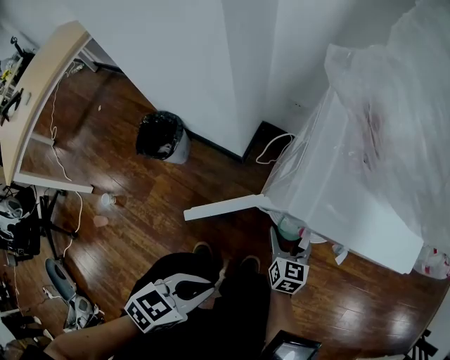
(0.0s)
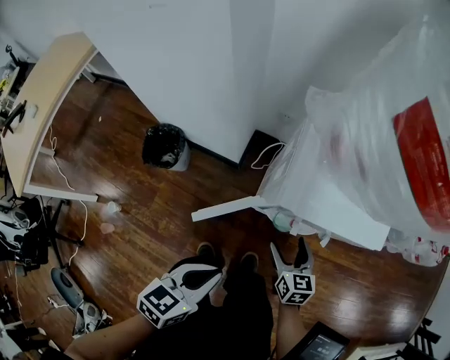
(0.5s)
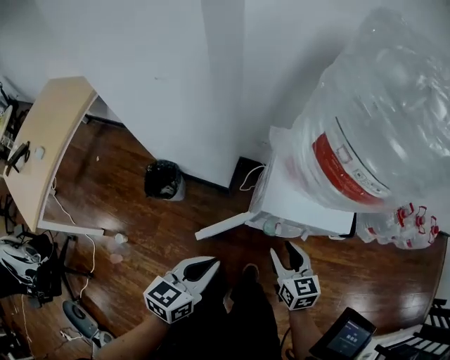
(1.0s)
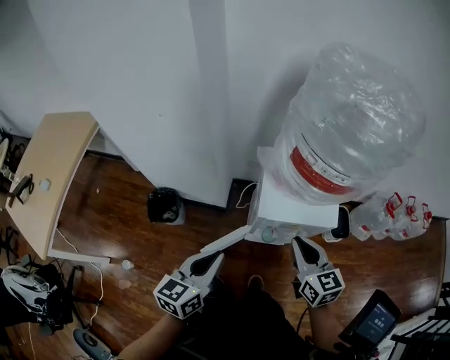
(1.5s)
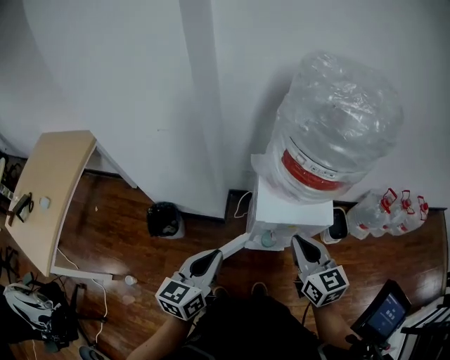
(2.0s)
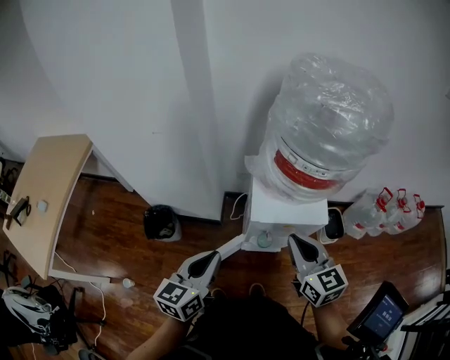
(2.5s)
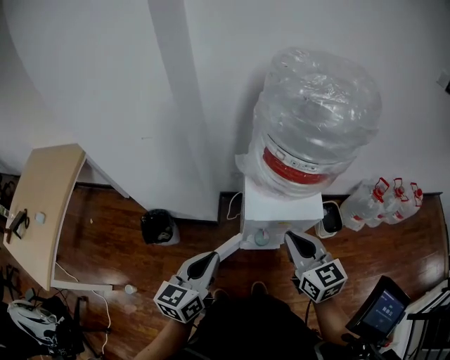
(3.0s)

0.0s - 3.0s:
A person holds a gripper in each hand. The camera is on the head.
0.0s - 1.5s: The two grippers go approximately 40 cm upward. The right gripper closes its fingers. The left gripper rotates about 30 degrees.
1.5s - 3.0s: The right gripper shifts roughly 5 cm upward.

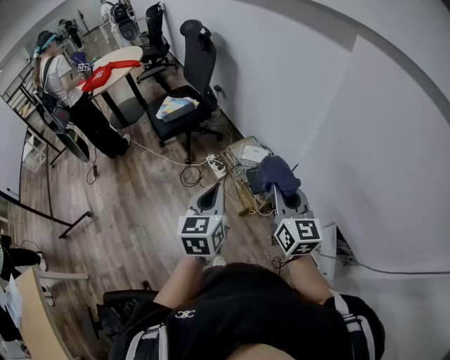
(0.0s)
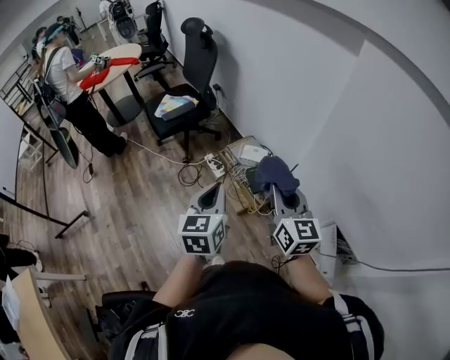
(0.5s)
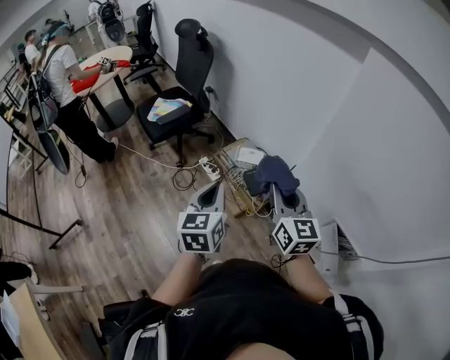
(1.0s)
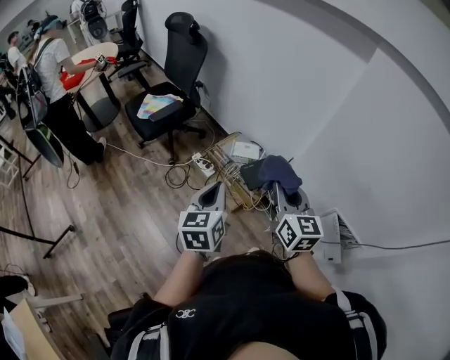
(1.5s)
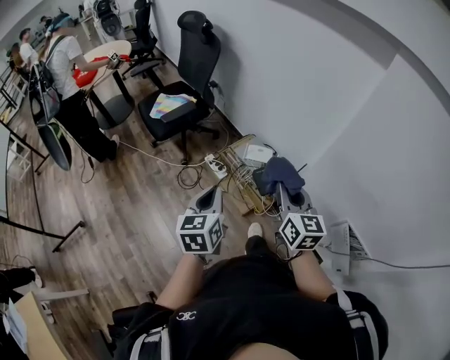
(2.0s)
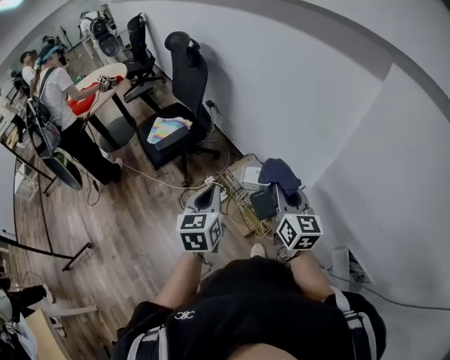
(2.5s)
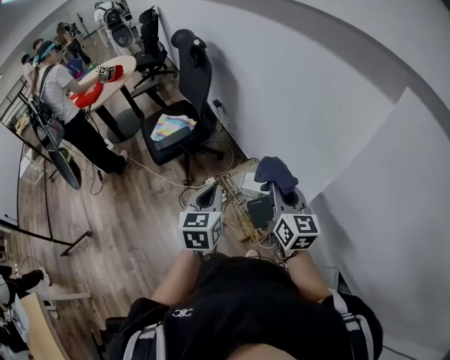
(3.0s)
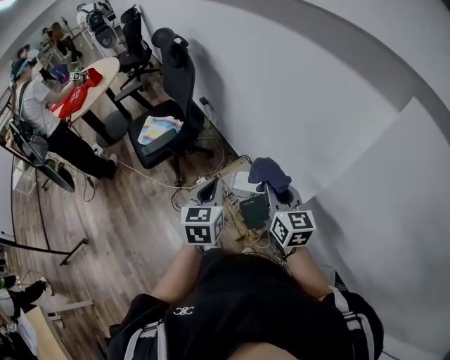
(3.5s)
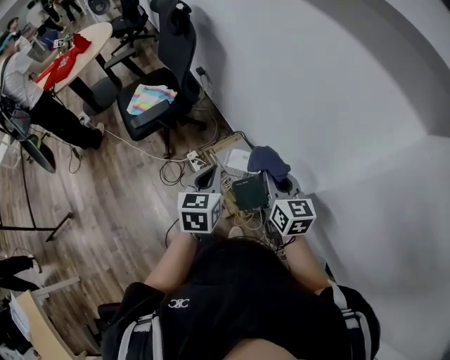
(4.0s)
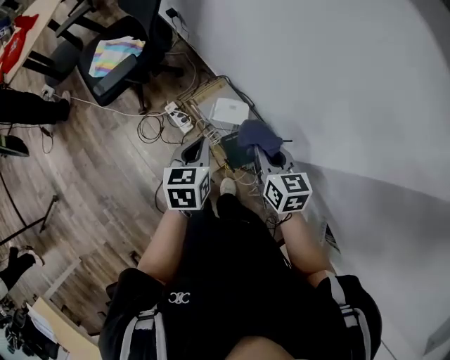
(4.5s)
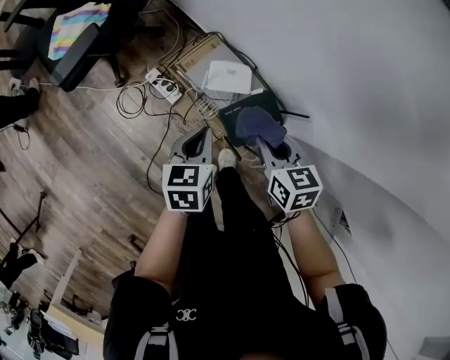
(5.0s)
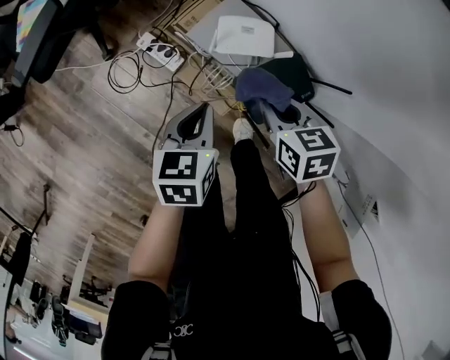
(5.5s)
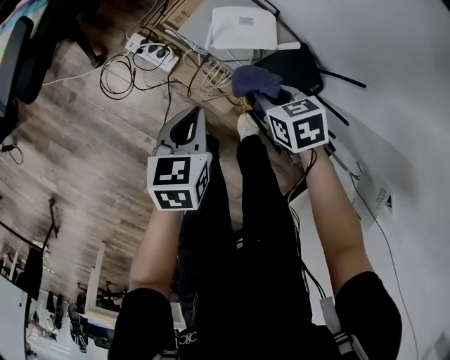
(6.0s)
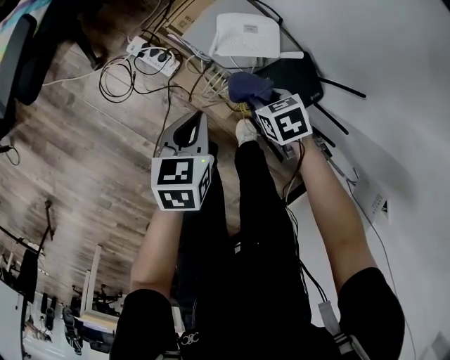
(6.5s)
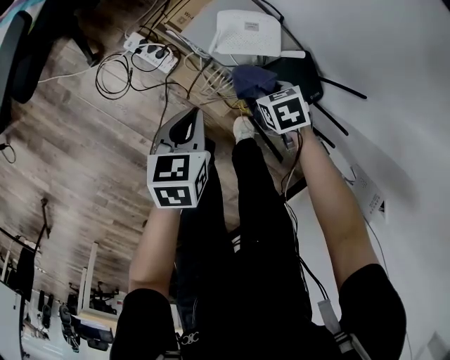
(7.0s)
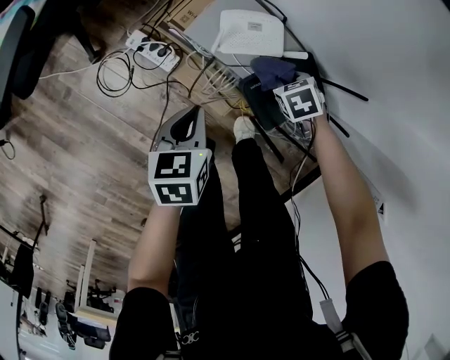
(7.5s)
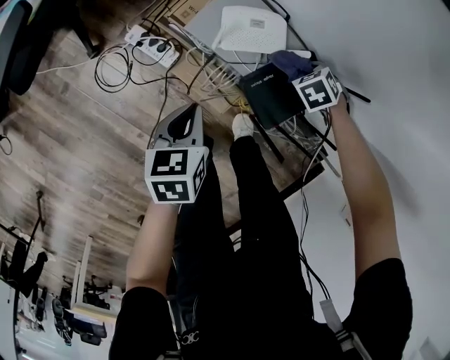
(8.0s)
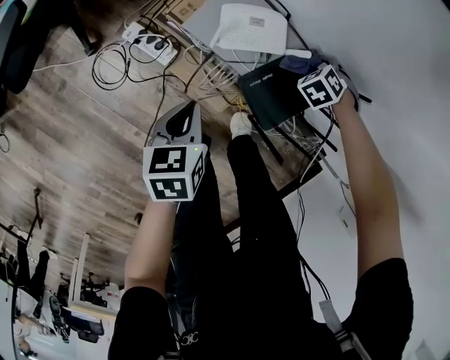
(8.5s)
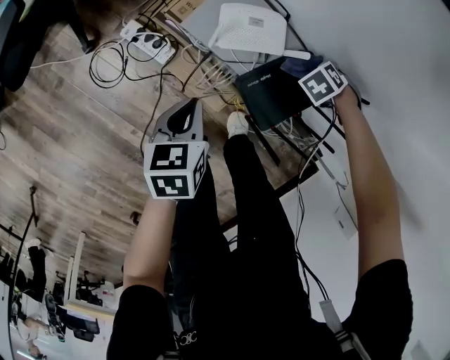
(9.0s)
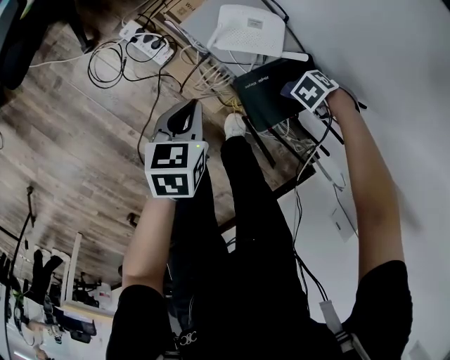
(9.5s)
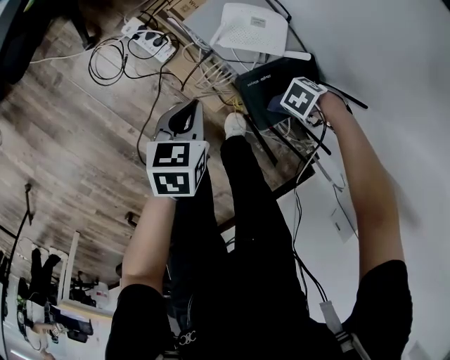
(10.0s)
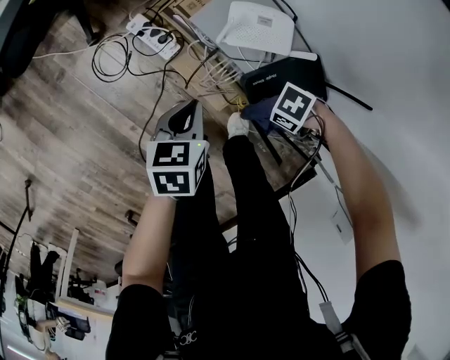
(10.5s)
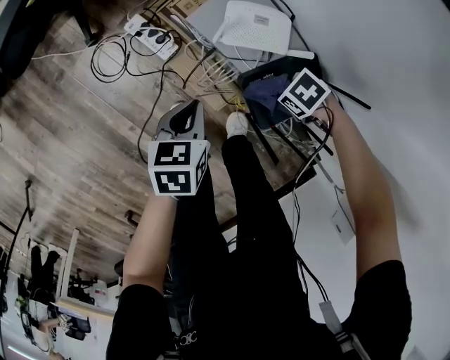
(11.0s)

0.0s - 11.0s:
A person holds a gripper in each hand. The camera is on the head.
0.0s - 2.0s: The right gripper travels to the left and forward by about 10 cm. The left gripper travels to the left, forward and downward by roughly 15 cm.
2.0s - 3.5s: The two grippers go approximately 25 cm forward and to the right.
3.5s - 5.5s: The two grippers go approximately 40 cm downward. The left gripper turns by approximately 30 degrees; the right gripper tips its fingers downward by some 40 degrees.
5.5s - 7.5s: The right gripper shifts roughly 20 cm downward, and turns by some 30 degrees; the left gripper heads downward, covering some 10 cm.
7.5s - 9.0s: The right gripper changes place by approximately 10 cm, and turns by approximately 30 degrees.
9.0s - 11.0s: The right gripper shifts by some 15 cm, and turns by approximately 30 degrees.

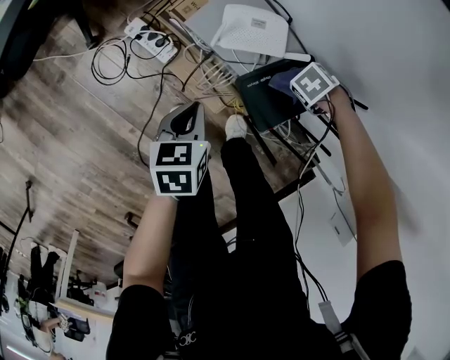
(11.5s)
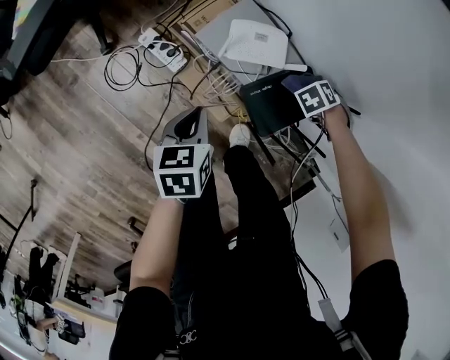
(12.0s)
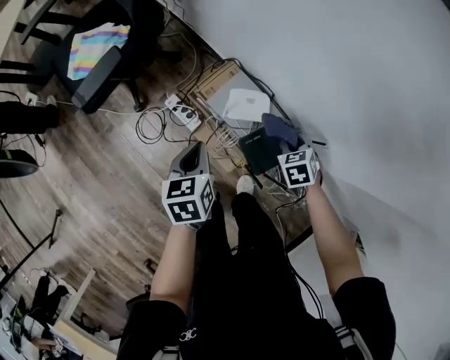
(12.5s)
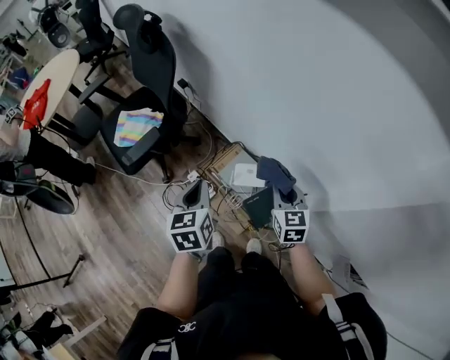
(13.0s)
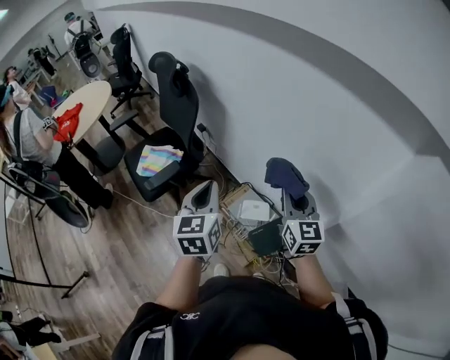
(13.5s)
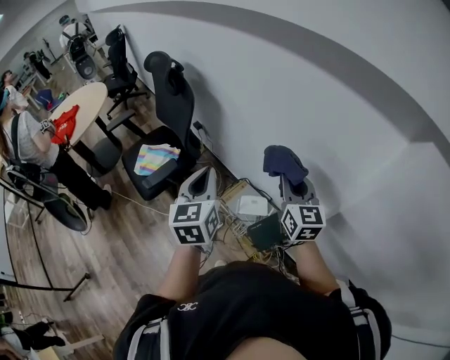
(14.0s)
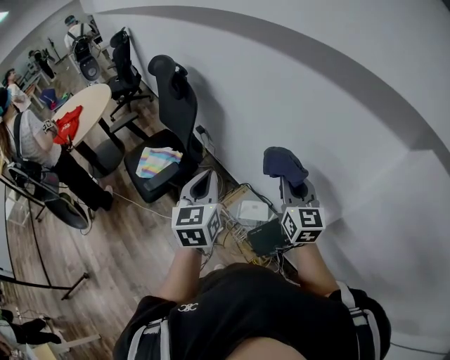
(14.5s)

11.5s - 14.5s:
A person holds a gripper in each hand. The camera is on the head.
11.5s - 13.0s: Both grippers move upward, some 50 cm. The right gripper angles its fingers upward, by some 40 degrees, while the left gripper changes its angle by some 30 degrees.
13.0s - 14.5s: Both grippers travel together upward, roughly 20 cm. The left gripper rotates about 20 degrees. The right gripper changes its angle by approximately 30 degrees.

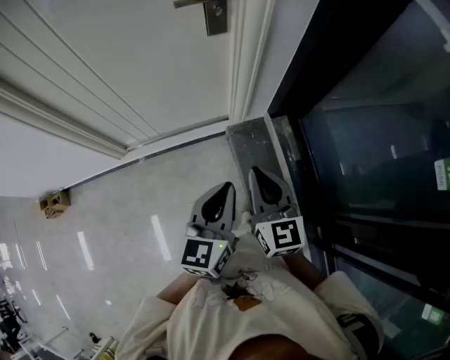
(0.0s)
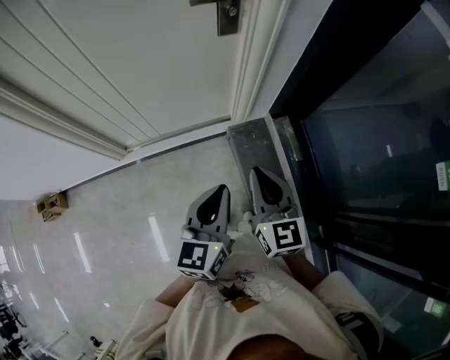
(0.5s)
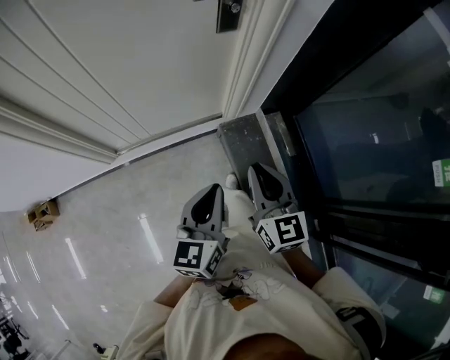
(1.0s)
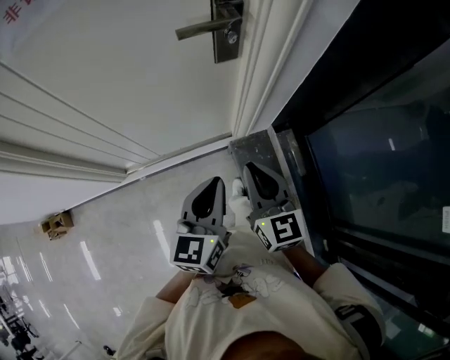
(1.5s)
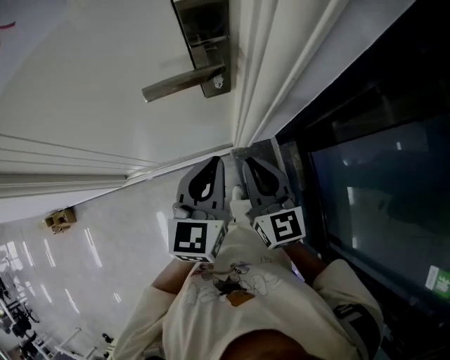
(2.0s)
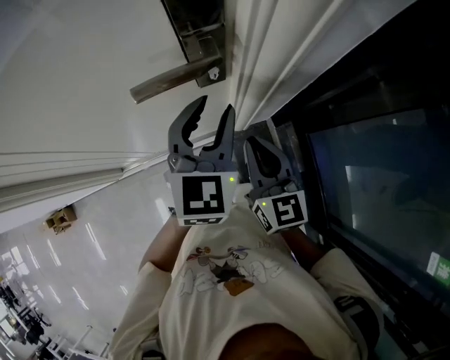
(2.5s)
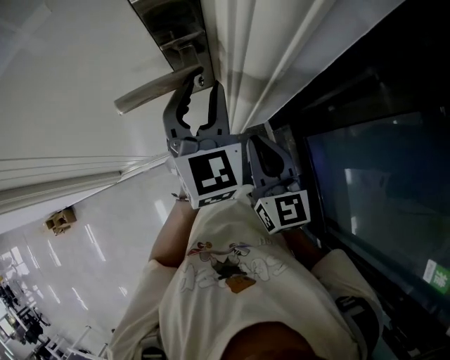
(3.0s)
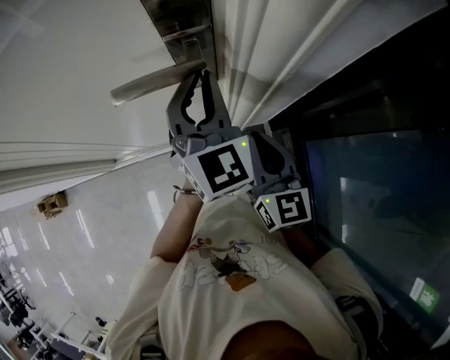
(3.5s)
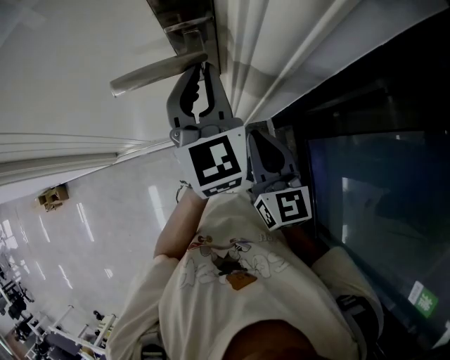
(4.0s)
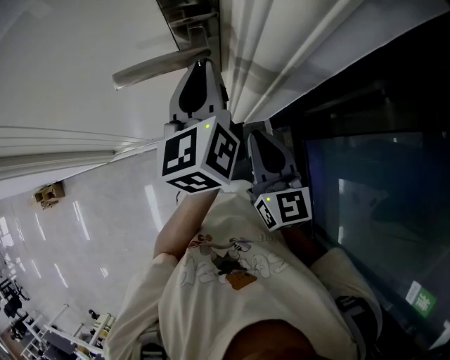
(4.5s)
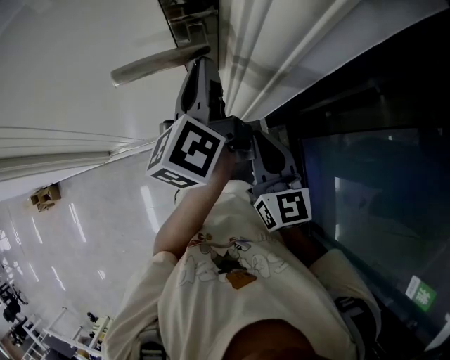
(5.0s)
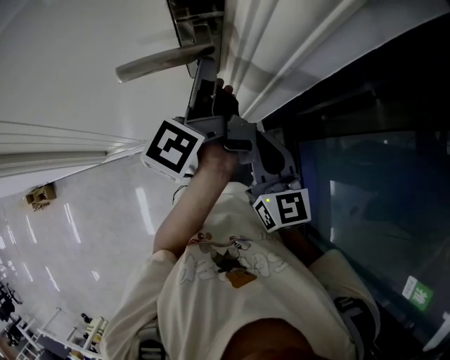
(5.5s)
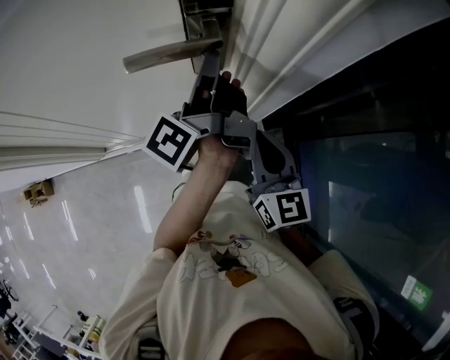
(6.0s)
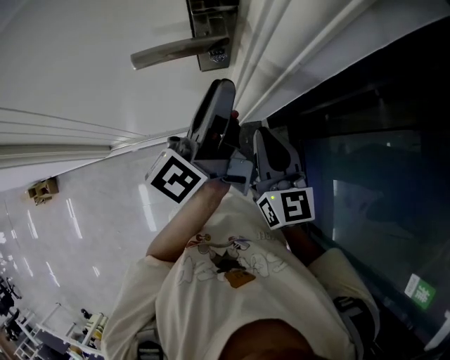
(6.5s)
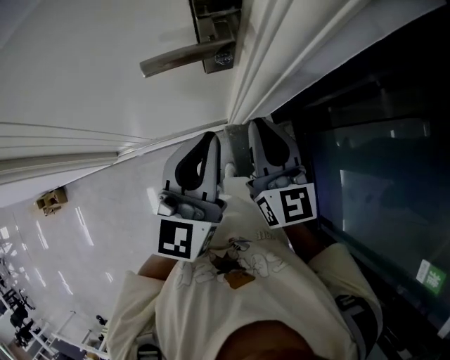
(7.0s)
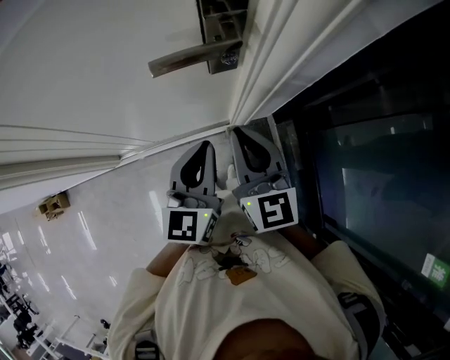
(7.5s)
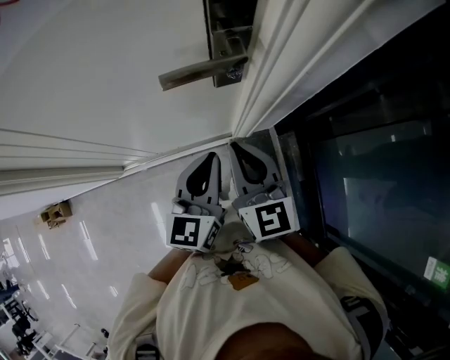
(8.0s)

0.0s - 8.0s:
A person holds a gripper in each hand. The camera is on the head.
0.0s - 2.0s: The two grippers go some 35 cm forward.
2.0s - 4.0s: The right gripper changes place by about 5 cm. The left gripper travels forward by about 15 cm, rotates approximately 30 degrees, and opens, then closes once more.
4.0s - 6.0s: The left gripper rolls counterclockwise, seen from behind, by roughly 90 degrees.
6.0s - 8.0s: The right gripper goes about 10 cm to the left; the left gripper travels backward and downward by some 15 cm, rotates around the line of its fingers by some 70 degrees, clockwise from behind, and opens, then closes again.

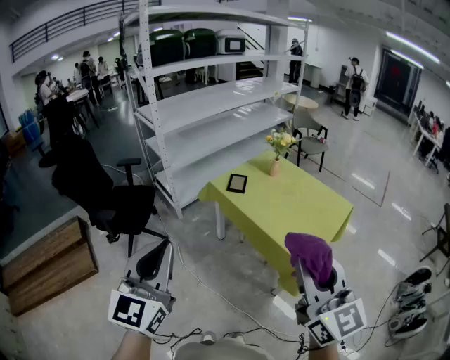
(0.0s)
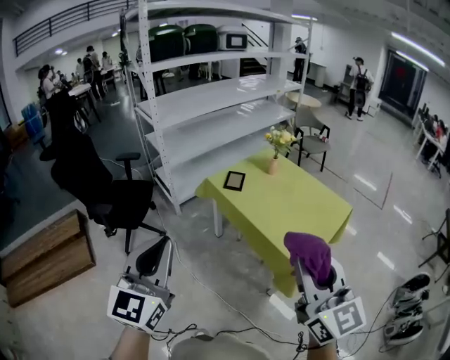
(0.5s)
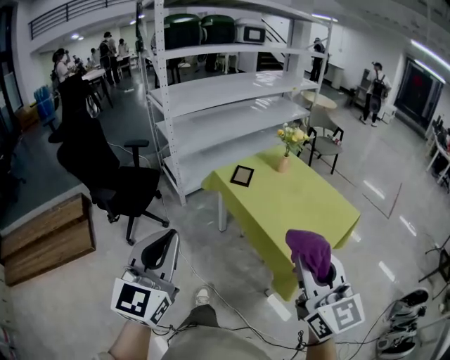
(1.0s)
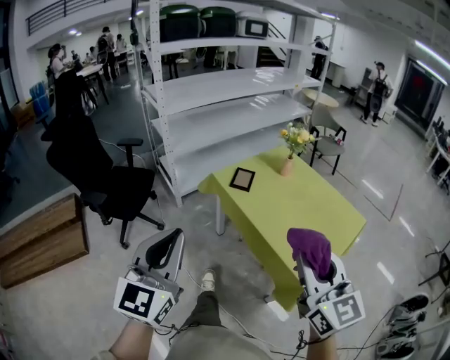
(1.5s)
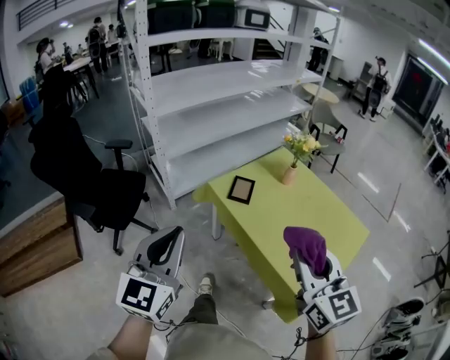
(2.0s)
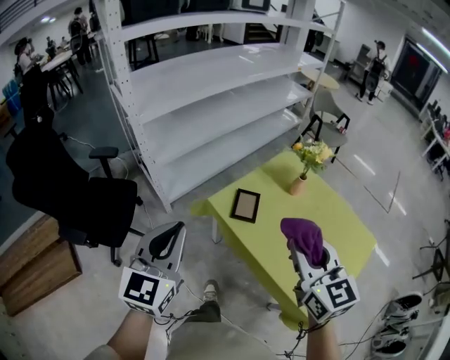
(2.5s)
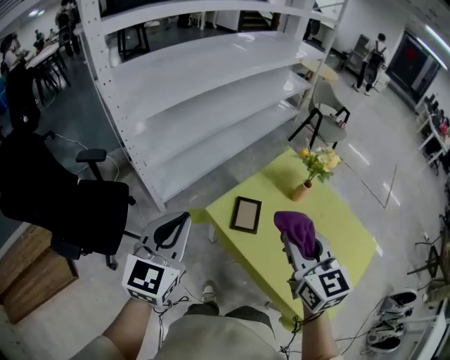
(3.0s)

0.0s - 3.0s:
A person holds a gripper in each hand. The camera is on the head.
0.0s - 1.5s: The right gripper is displaced forward and downward by roughly 15 cm, while the left gripper goes approximately 15 cm forward, downward and to the right.
1.5s - 3.0s: The two grippers travel together, forward, roughly 50 cm.
